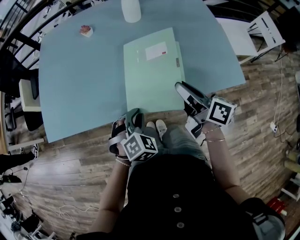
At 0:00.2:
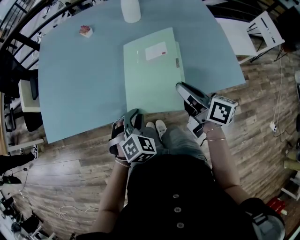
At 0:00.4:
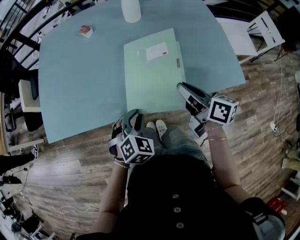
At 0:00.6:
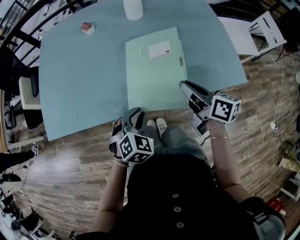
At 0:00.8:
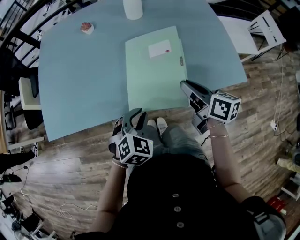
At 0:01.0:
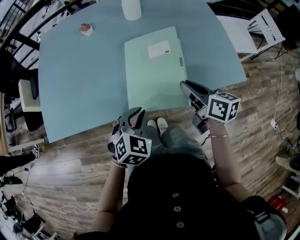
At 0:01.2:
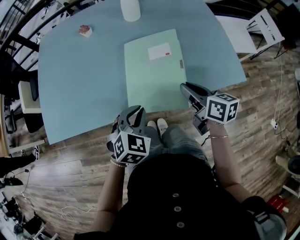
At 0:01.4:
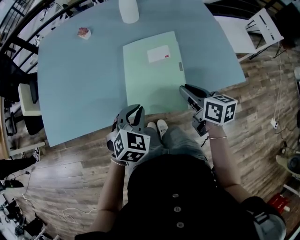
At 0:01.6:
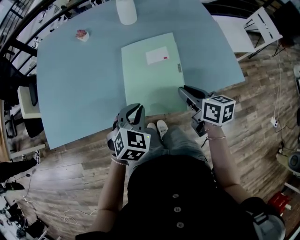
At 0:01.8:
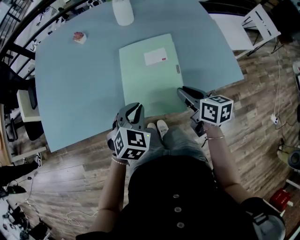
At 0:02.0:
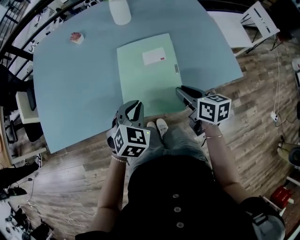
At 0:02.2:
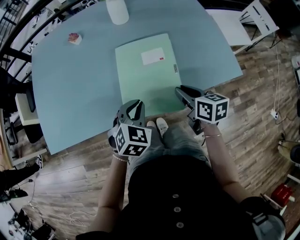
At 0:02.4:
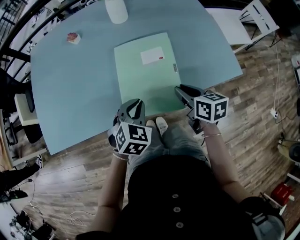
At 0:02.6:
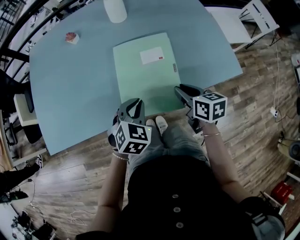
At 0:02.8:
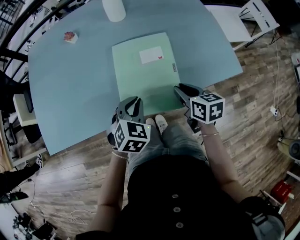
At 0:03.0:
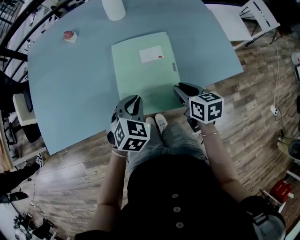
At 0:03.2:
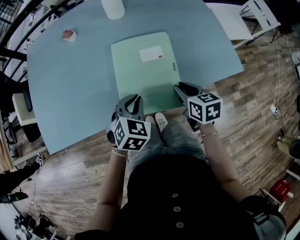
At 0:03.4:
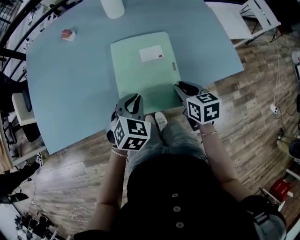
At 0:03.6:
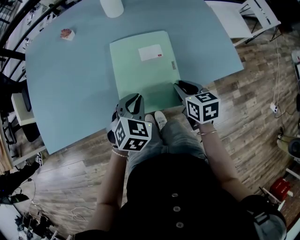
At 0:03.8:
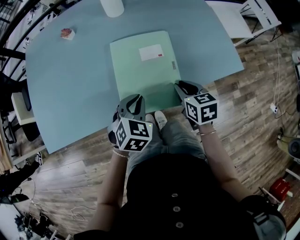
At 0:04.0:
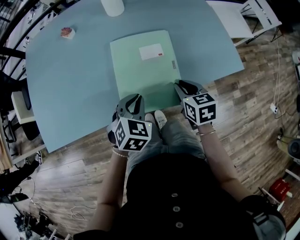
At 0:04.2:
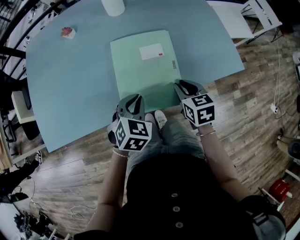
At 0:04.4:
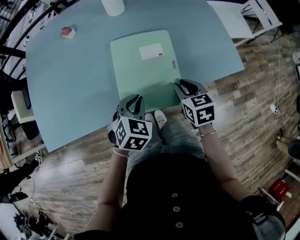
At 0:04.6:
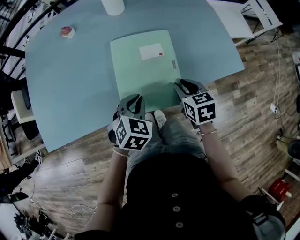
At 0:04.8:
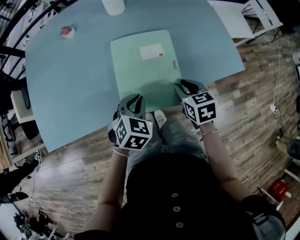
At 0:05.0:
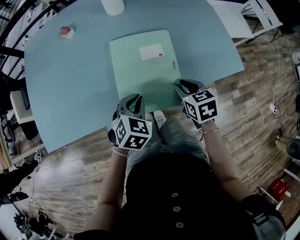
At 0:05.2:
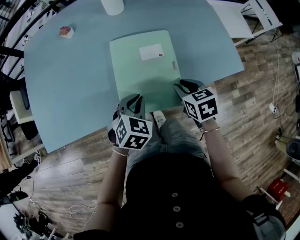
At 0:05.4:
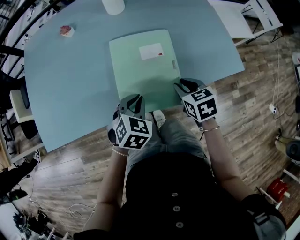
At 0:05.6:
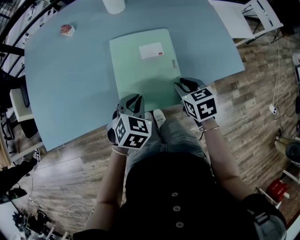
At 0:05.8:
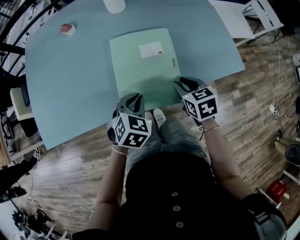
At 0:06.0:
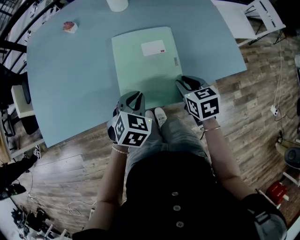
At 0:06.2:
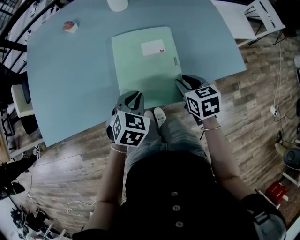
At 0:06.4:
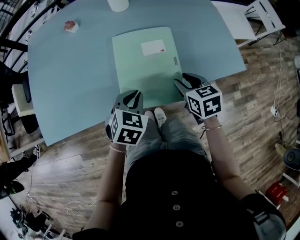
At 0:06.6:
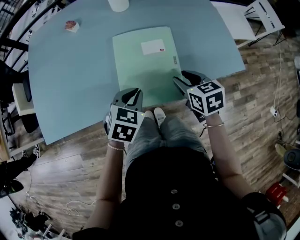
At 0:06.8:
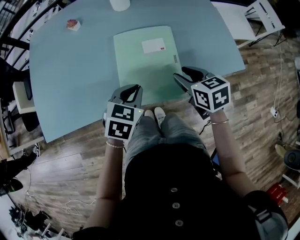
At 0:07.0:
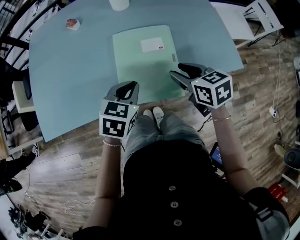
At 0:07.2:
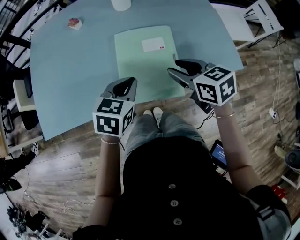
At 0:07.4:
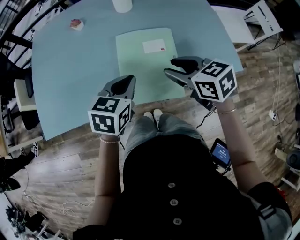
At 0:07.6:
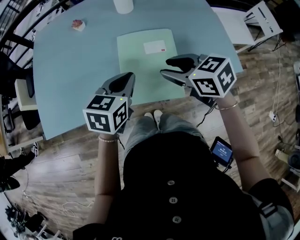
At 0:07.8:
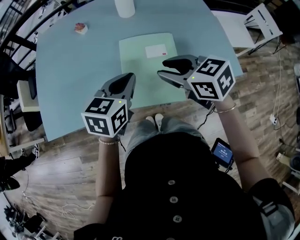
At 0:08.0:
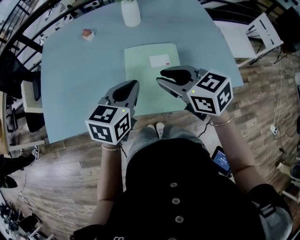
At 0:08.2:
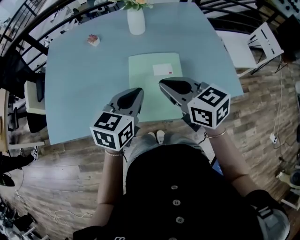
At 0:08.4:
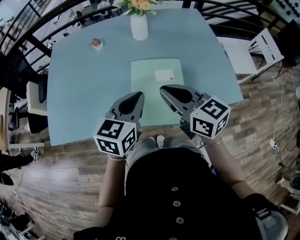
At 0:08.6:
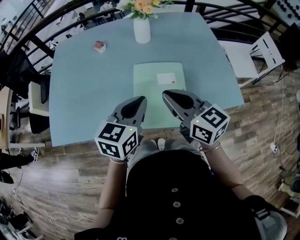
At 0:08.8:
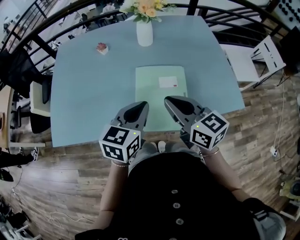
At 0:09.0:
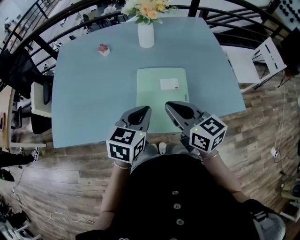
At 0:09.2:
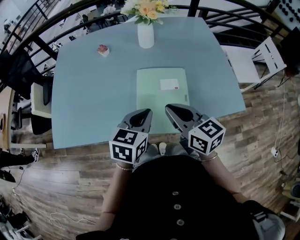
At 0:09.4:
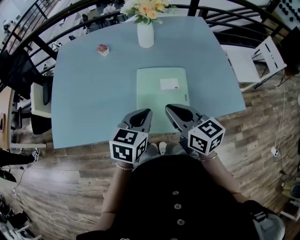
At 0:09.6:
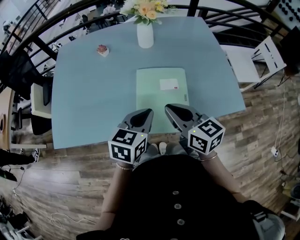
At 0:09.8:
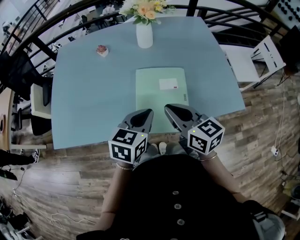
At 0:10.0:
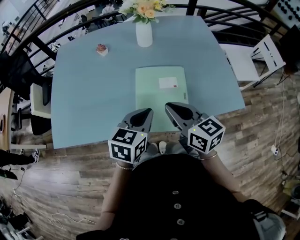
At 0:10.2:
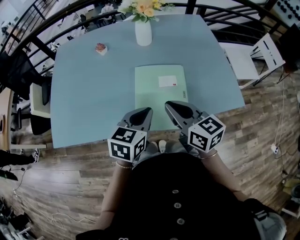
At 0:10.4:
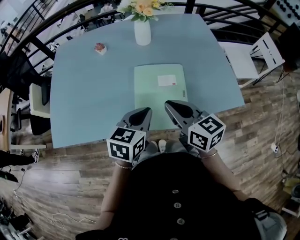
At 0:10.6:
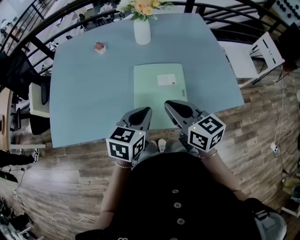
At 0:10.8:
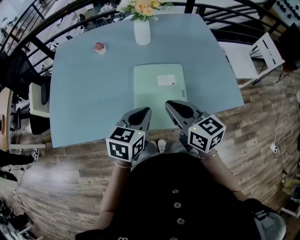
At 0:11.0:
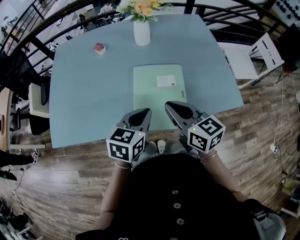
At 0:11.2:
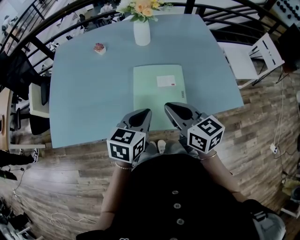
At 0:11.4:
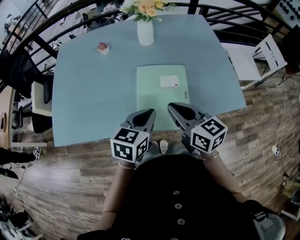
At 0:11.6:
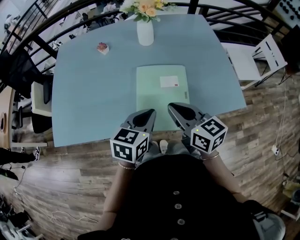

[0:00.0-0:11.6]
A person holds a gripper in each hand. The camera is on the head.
0:00.0 to 0:01.4: The right gripper shifts about 5 cm downward, and changes its angle by about 20 degrees.
0:01.4 to 0:02.8: The left gripper changes place by roughly 5 cm; the right gripper shifts roughly 5 cm downward.
0:02.8 to 0:04.4: The grippers stay close to where they were, moving slightly.
0:04.4 to 0:05.8: The grippers stay close to where they were, moving slightly.
0:05.8 to 0:07.2: The grippers both shift upward by about 10 cm. The left gripper changes its angle by roughly 20 degrees.
0:07.2 to 0:08.8: The left gripper moves upward, roughly 10 cm; the right gripper shifts approximately 10 cm upward and to the left, turns by approximately 30 degrees, and closes up.
0:08.8 to 0:10.2: The grippers move only a little.
0:10.2 to 0:11.6: The two grippers keep their place.

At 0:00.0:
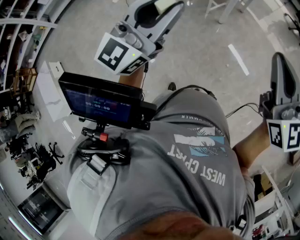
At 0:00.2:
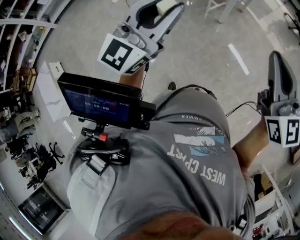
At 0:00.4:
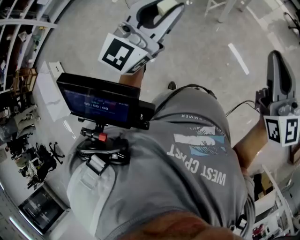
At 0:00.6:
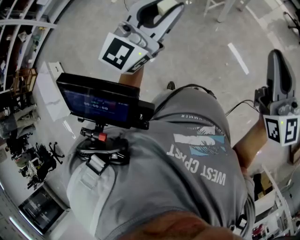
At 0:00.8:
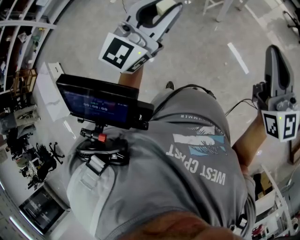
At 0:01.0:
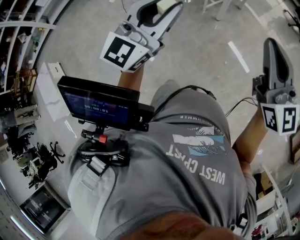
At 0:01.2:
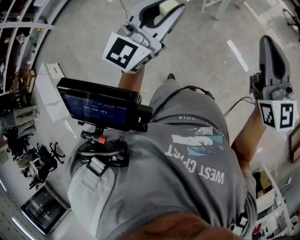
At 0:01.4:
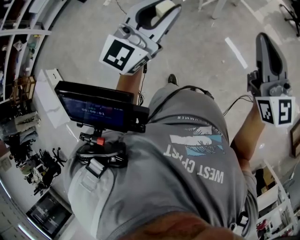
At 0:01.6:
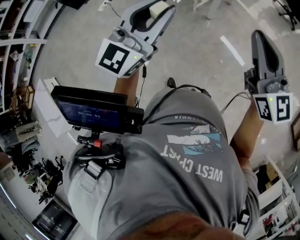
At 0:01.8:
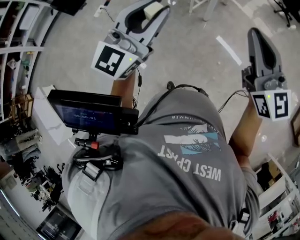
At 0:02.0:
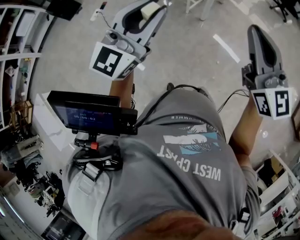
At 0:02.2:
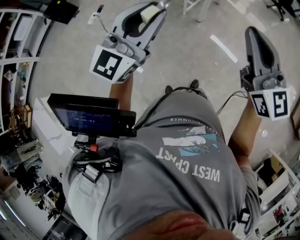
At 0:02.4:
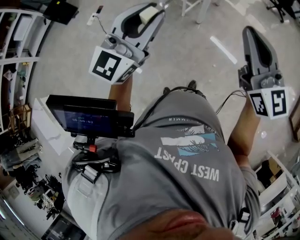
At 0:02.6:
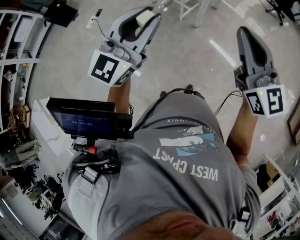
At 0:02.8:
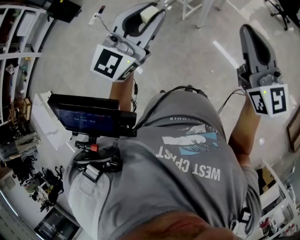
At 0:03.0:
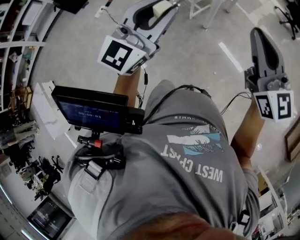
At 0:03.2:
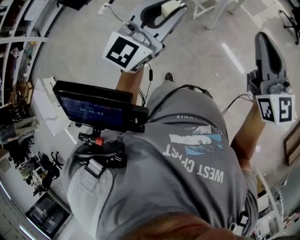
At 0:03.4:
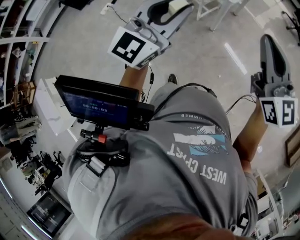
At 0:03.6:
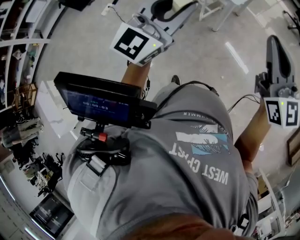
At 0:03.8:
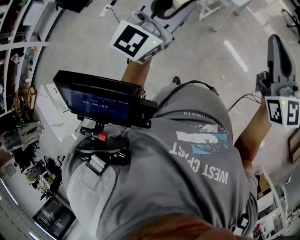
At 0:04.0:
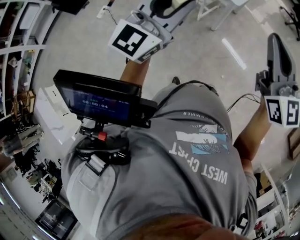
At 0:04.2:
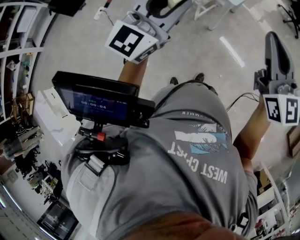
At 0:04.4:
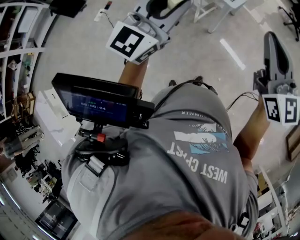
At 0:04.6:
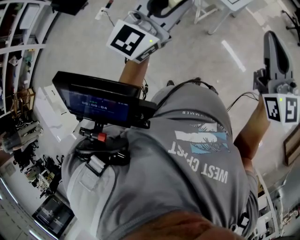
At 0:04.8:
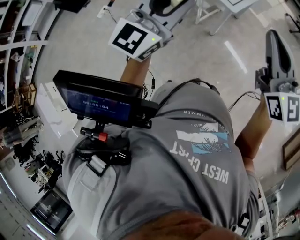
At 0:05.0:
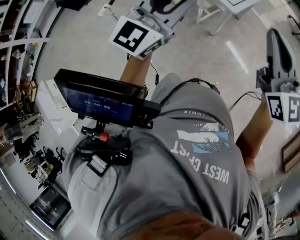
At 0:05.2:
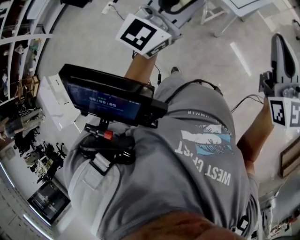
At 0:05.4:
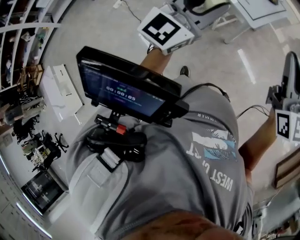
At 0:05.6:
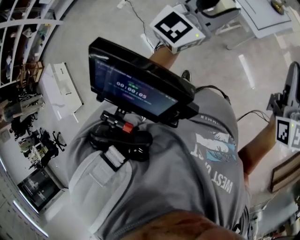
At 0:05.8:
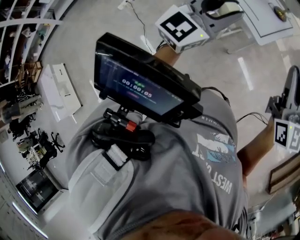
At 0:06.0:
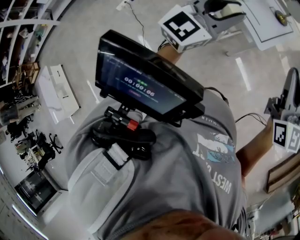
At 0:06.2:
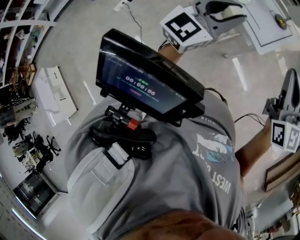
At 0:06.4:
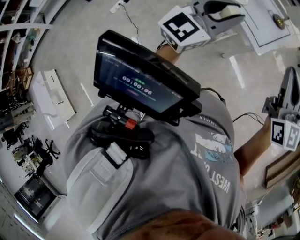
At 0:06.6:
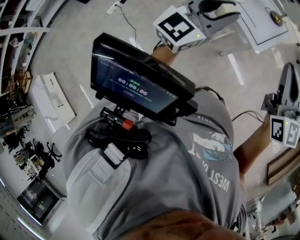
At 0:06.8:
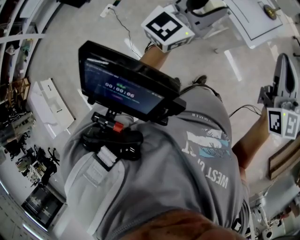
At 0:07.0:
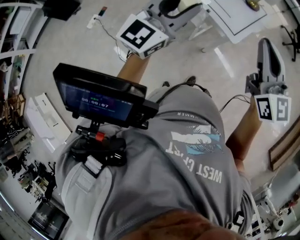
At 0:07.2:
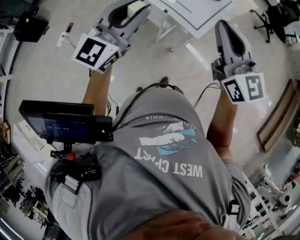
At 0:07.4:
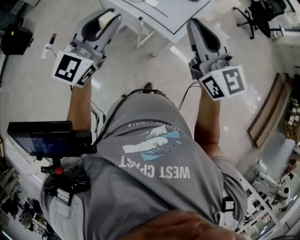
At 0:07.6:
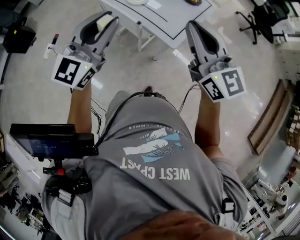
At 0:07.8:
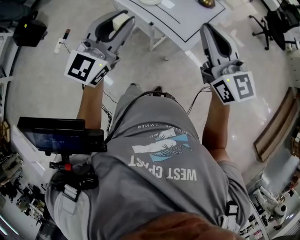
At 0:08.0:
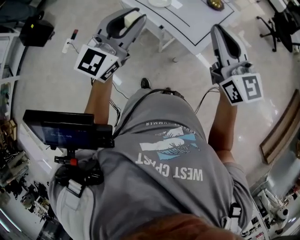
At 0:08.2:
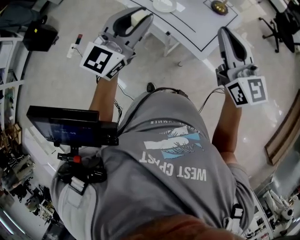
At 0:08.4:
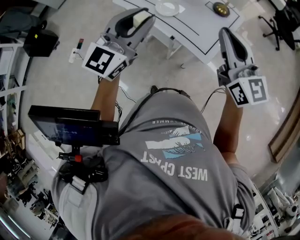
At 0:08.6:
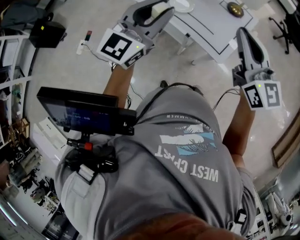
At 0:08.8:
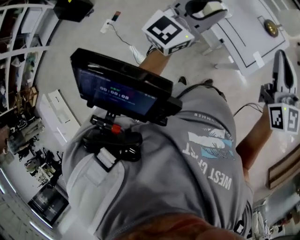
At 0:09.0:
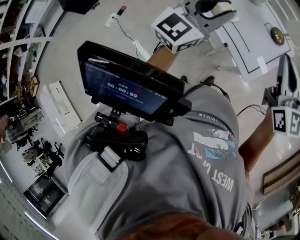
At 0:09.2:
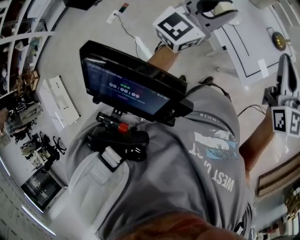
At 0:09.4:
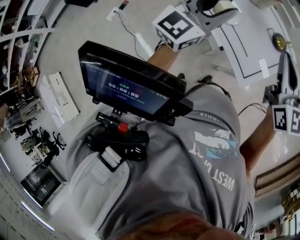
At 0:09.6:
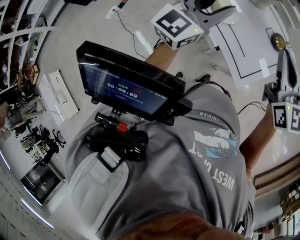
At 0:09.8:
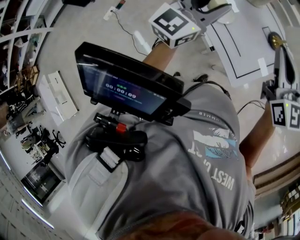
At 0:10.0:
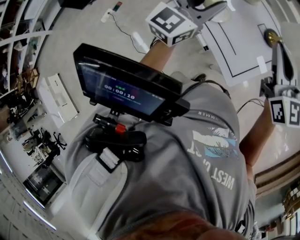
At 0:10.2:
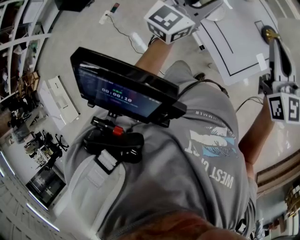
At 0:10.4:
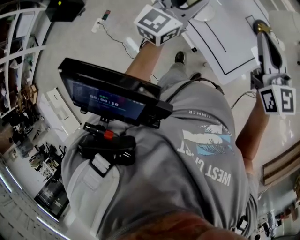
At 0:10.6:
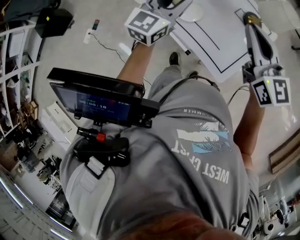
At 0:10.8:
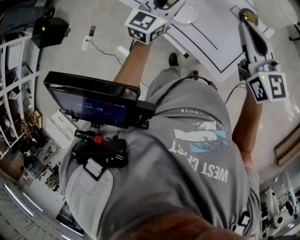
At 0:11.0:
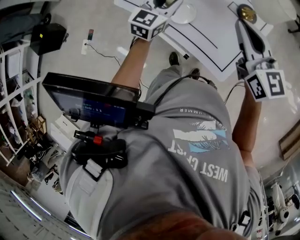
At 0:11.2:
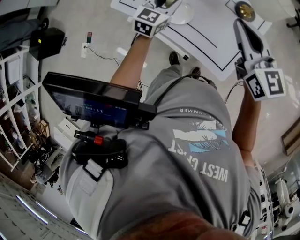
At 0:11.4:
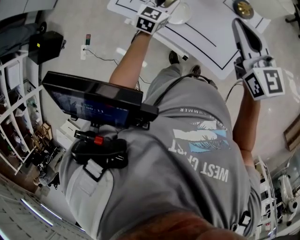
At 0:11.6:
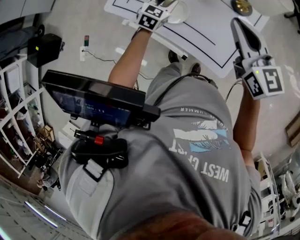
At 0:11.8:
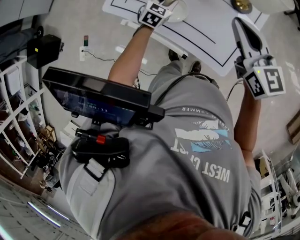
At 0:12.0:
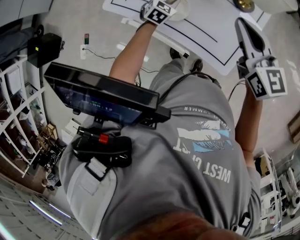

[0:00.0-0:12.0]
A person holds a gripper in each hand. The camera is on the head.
0:00.0 to 0:01.6: Both grippers move forward, some 10 cm.
0:01.6 to 0:03.0: The grippers both shift forward and to the right by roughly 15 cm.
0:03.0 to 0:04.4: Both grippers travel together forward and to the left, some 15 cm.
0:04.4 to 0:06.0: The two grippers go roughly 20 cm forward.
0:06.0 to 0:07.6: Both grippers move forward, approximately 10 cm.
0:07.6 to 0:09.0: The two grippers go approximately 20 cm forward.
0:09.0 to 0:10.4: The right gripper moves forward, about 10 cm. Meanwhile the left gripper shifts some 15 cm forward and to the right.
0:10.4 to 0:12.0: The left gripper goes about 35 cm downward and forward, and angles its fingers downward, by some 40 degrees. Meanwhile the right gripper heads downward and forward, covering roughly 10 cm.
